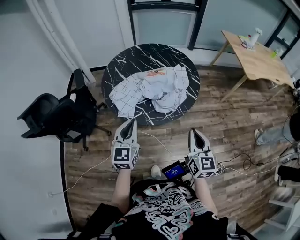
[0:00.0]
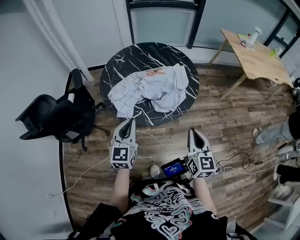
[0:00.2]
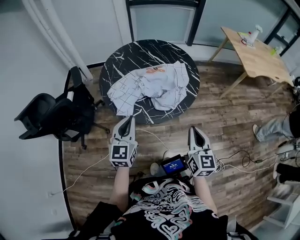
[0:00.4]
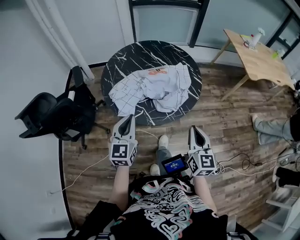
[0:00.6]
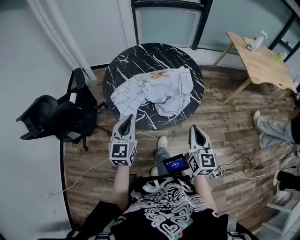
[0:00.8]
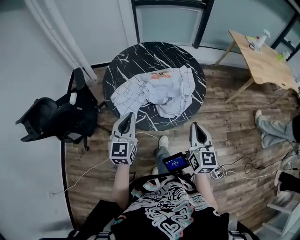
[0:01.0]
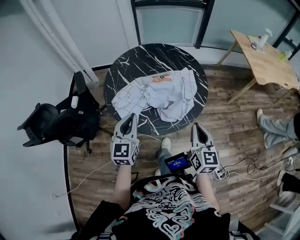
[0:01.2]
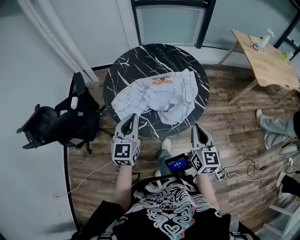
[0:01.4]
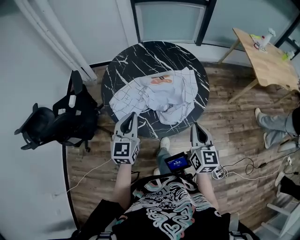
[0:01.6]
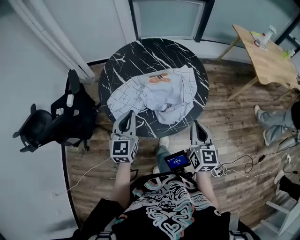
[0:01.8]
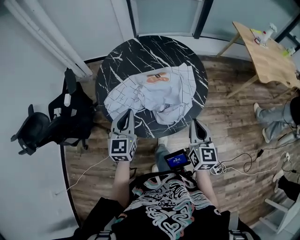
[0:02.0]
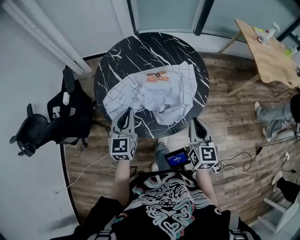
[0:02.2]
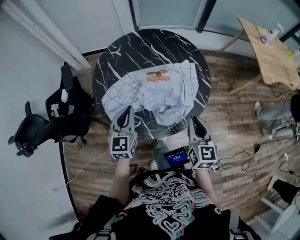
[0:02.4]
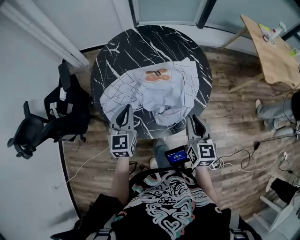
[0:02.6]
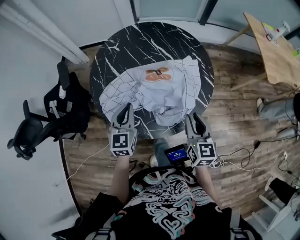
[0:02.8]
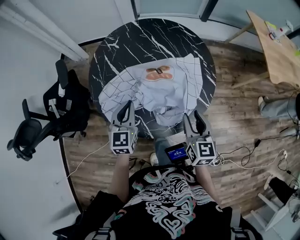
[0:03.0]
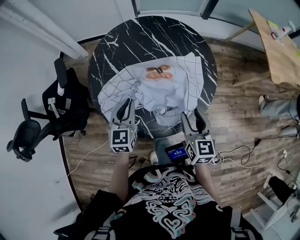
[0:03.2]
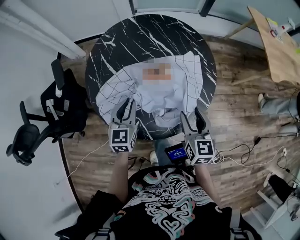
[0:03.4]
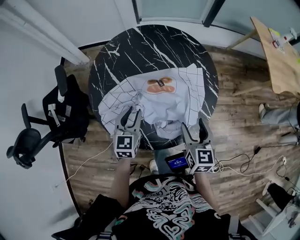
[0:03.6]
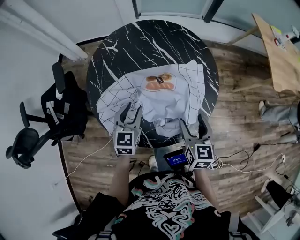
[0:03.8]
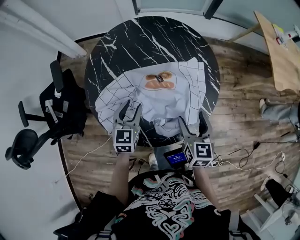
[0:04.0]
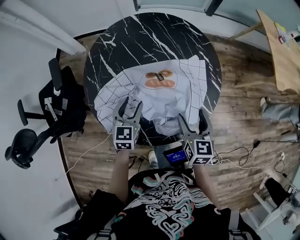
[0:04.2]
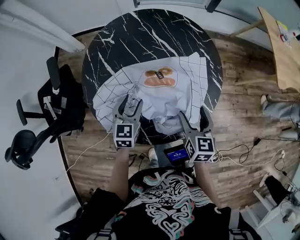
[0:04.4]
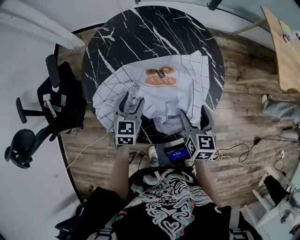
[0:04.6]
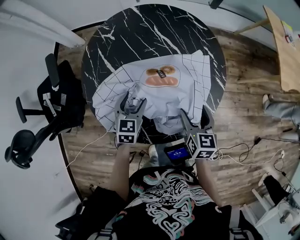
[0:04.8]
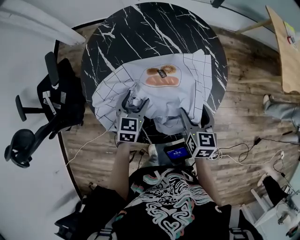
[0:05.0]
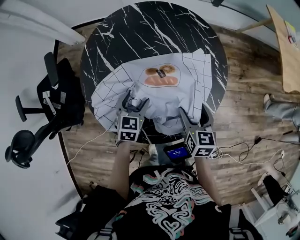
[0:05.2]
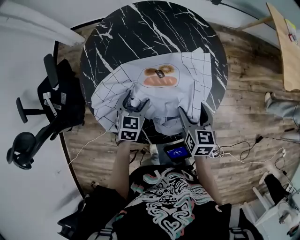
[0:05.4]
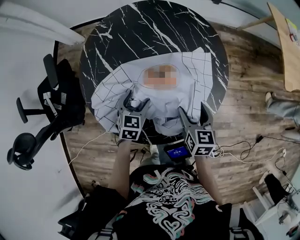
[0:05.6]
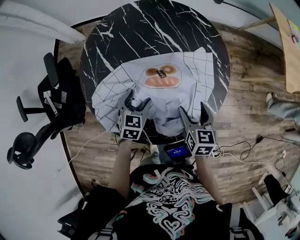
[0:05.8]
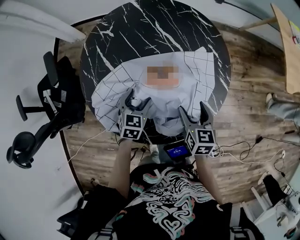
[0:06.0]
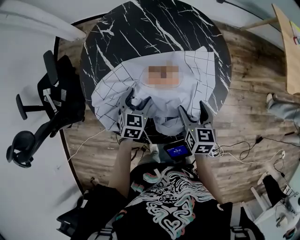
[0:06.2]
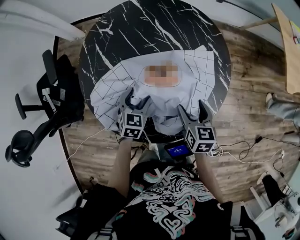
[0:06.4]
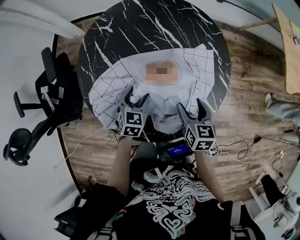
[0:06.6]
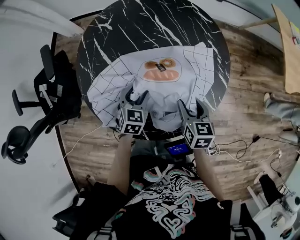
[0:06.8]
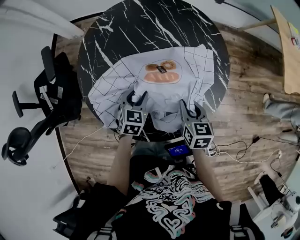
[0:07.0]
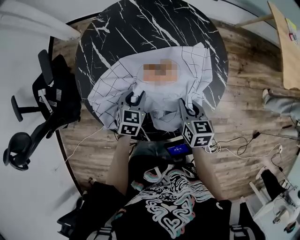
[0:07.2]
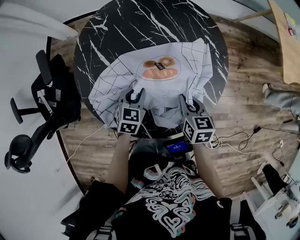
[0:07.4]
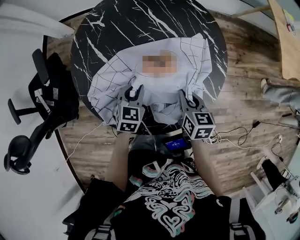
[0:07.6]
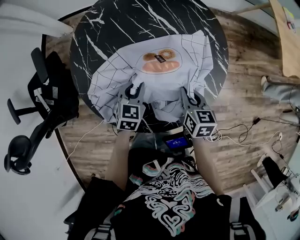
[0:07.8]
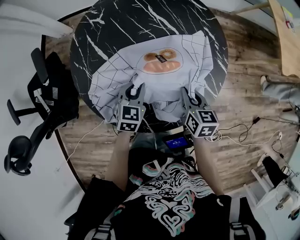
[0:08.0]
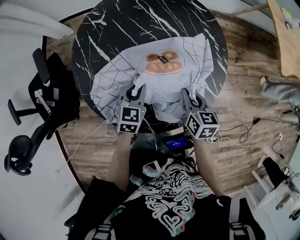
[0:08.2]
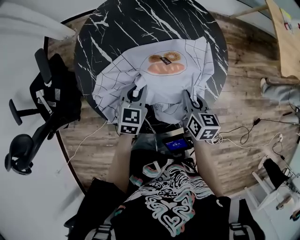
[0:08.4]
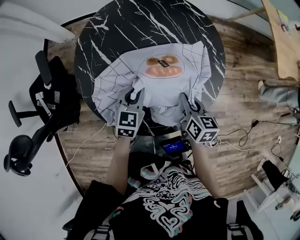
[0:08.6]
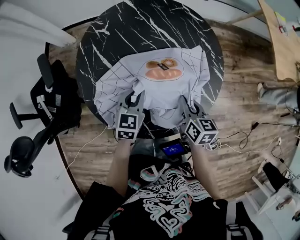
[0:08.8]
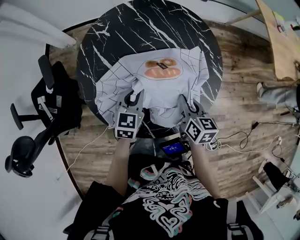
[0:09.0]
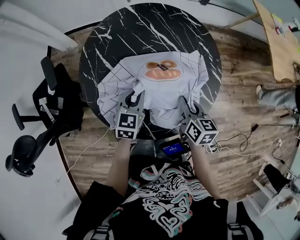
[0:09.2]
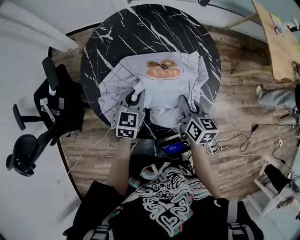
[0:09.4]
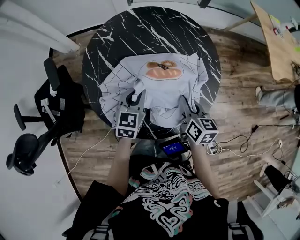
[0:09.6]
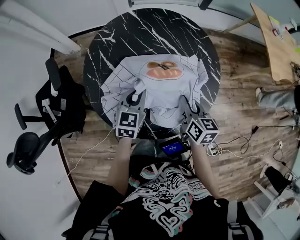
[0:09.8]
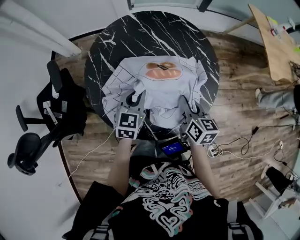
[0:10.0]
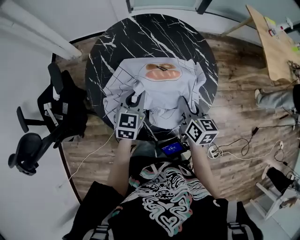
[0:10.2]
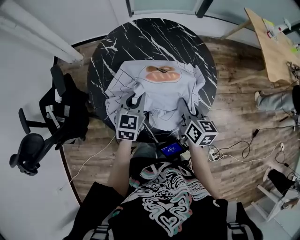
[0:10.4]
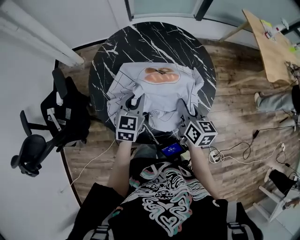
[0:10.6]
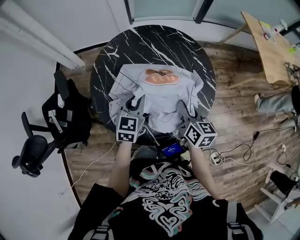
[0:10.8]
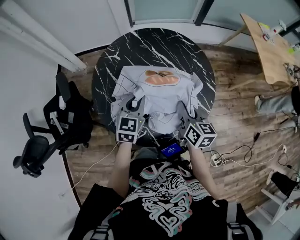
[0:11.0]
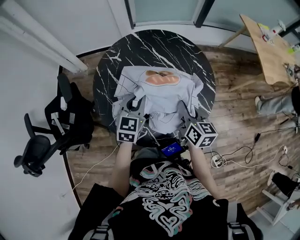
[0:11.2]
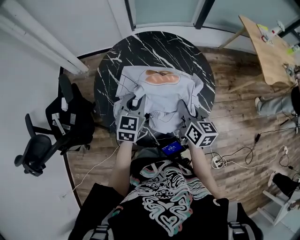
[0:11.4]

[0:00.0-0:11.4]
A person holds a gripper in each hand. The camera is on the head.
0:00.0 to 0:01.4: The two grippers go about 10 cm forward.
0:01.4 to 0:02.8: Both grippers travel together forward and downward, some 15 cm.
0:02.8 to 0:04.2: The right gripper goes about 10 cm forward and downward, and opens up, while the left gripper goes about 10 cm downward and forward, and opens its fingers.
0:04.2 to 0:05.6: Both grippers move downward, some 5 cm.
0:05.6 to 0:07.2: The left gripper closes. The right gripper closes its fingers.
0:07.2 to 0:08.6: The left gripper travels upward by roughly 5 cm.
0:08.6 to 0:10.0: The two grippers go approximately 5 cm upward.
0:10.0 to 0:11.4: Both grippers move upward, roughly 5 cm.

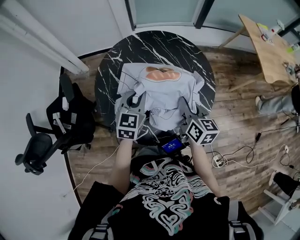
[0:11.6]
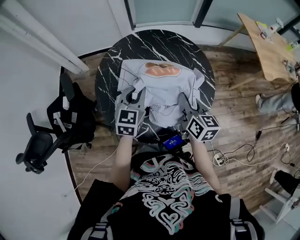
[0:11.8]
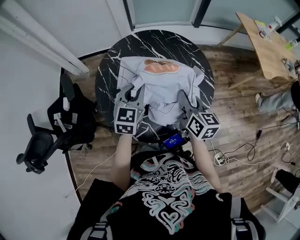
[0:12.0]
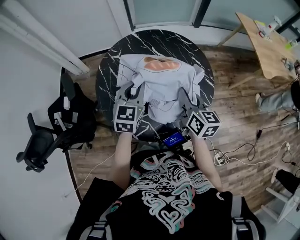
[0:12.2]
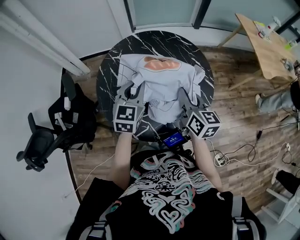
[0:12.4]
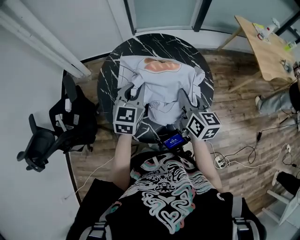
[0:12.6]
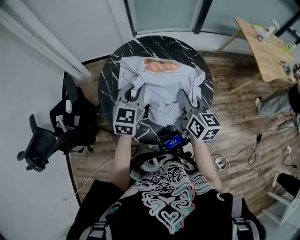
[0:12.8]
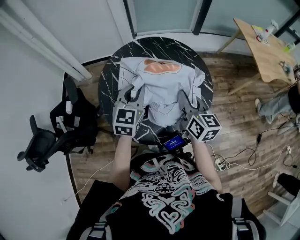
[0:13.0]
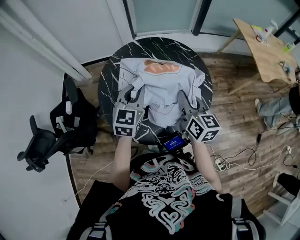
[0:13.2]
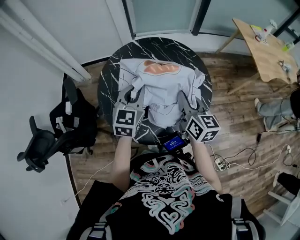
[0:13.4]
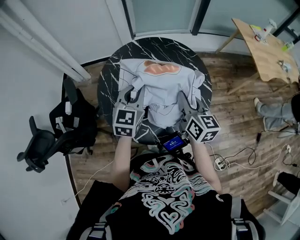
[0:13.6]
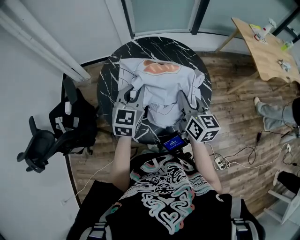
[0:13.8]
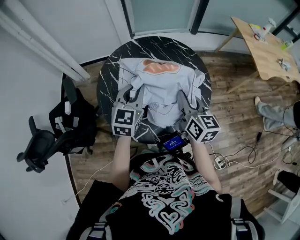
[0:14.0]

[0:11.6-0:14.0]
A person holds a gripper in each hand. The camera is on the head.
0:11.6 to 0:12.8: The grippers both shift upward by approximately 5 cm.
0:12.8 to 0:14.0: The grippers stay close to where they were, moving slightly.

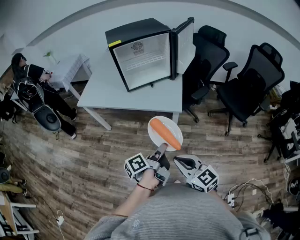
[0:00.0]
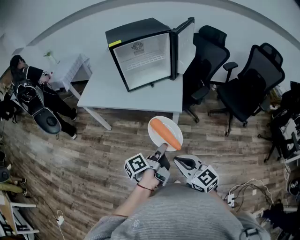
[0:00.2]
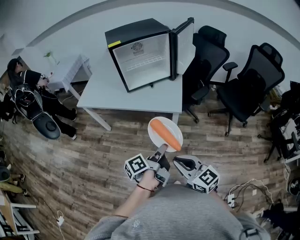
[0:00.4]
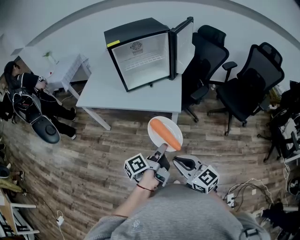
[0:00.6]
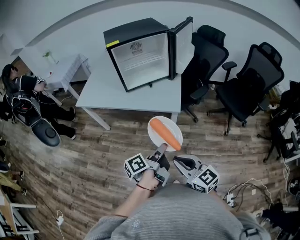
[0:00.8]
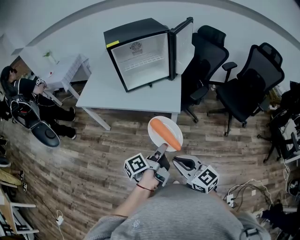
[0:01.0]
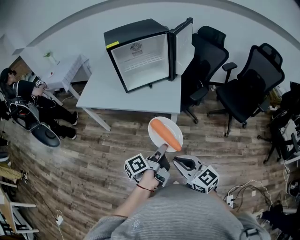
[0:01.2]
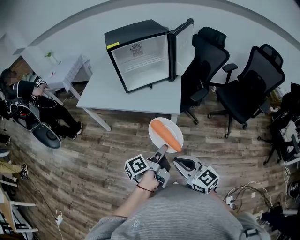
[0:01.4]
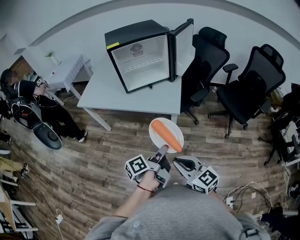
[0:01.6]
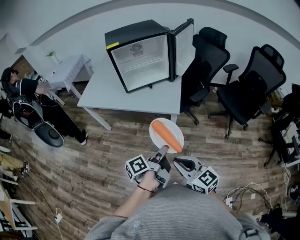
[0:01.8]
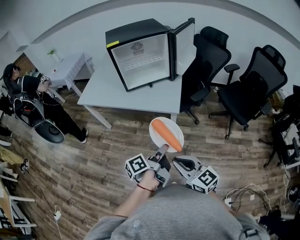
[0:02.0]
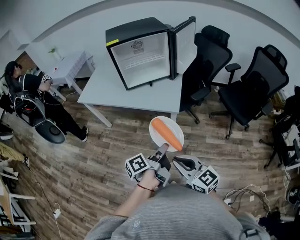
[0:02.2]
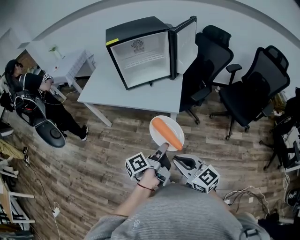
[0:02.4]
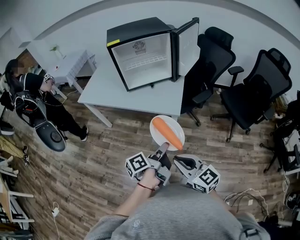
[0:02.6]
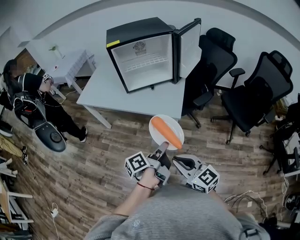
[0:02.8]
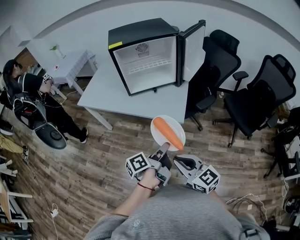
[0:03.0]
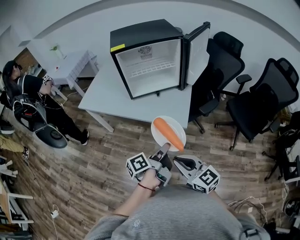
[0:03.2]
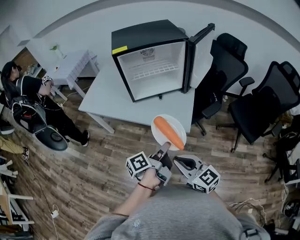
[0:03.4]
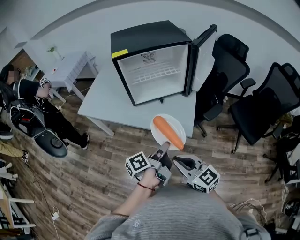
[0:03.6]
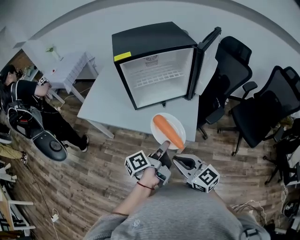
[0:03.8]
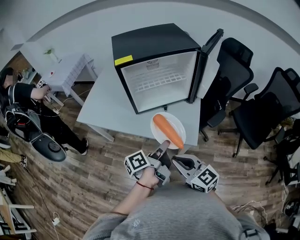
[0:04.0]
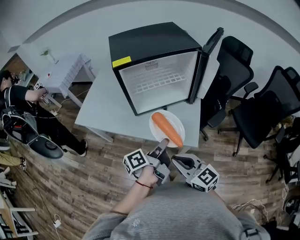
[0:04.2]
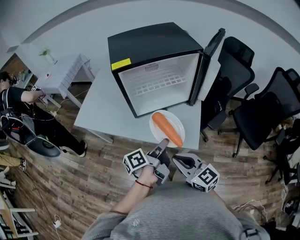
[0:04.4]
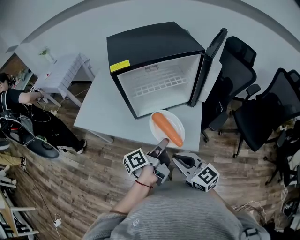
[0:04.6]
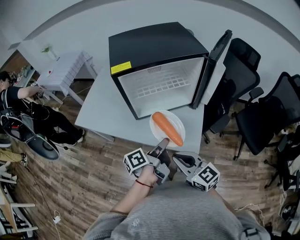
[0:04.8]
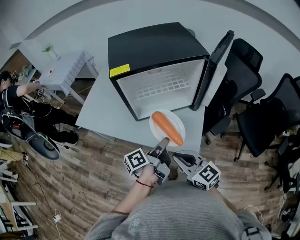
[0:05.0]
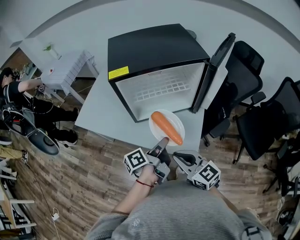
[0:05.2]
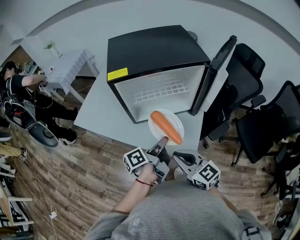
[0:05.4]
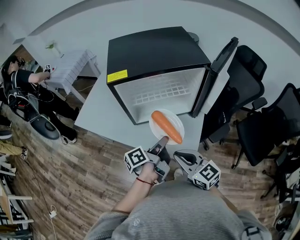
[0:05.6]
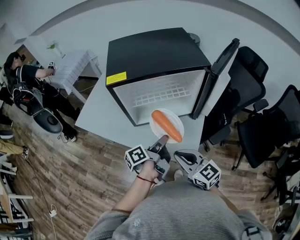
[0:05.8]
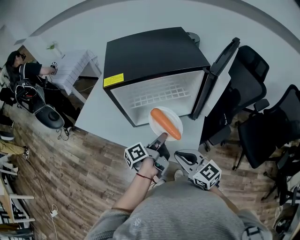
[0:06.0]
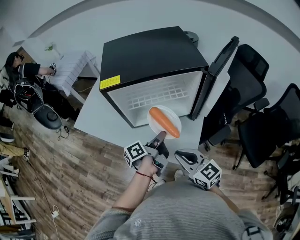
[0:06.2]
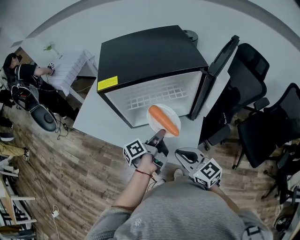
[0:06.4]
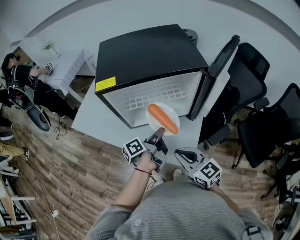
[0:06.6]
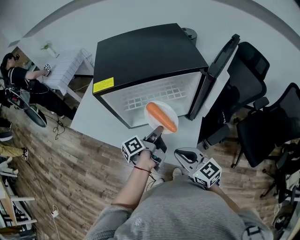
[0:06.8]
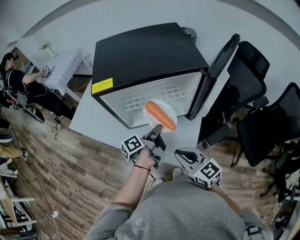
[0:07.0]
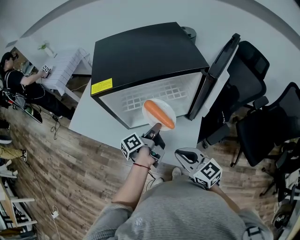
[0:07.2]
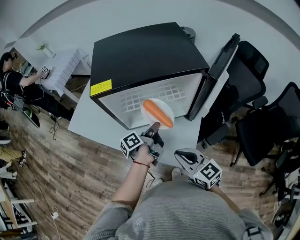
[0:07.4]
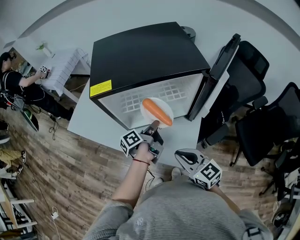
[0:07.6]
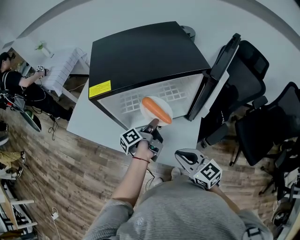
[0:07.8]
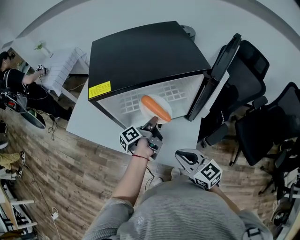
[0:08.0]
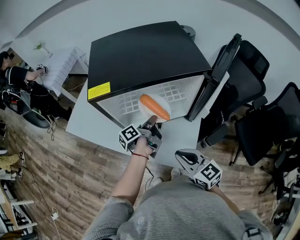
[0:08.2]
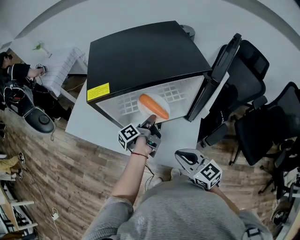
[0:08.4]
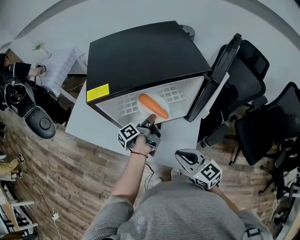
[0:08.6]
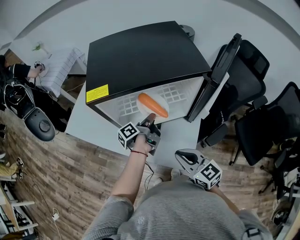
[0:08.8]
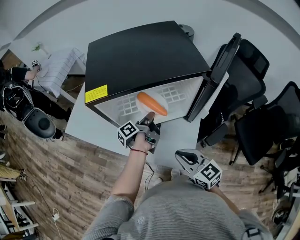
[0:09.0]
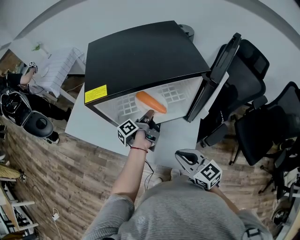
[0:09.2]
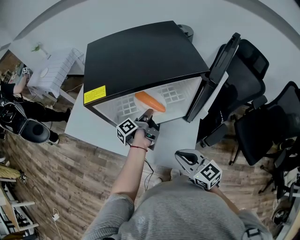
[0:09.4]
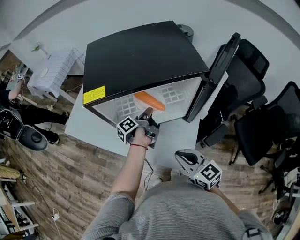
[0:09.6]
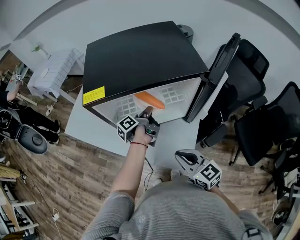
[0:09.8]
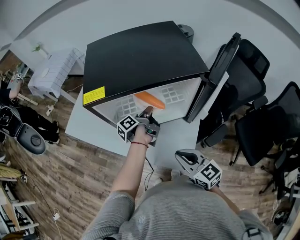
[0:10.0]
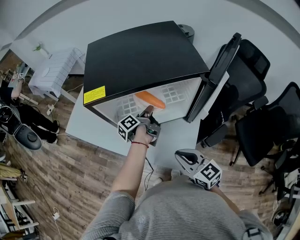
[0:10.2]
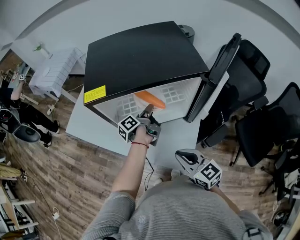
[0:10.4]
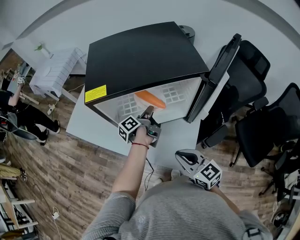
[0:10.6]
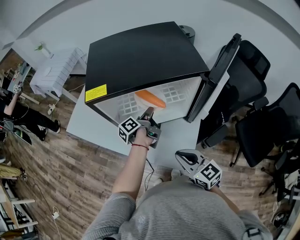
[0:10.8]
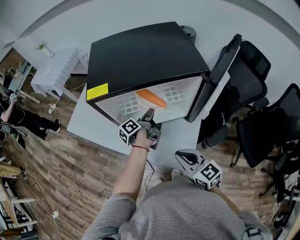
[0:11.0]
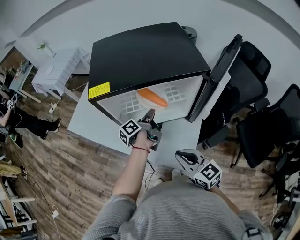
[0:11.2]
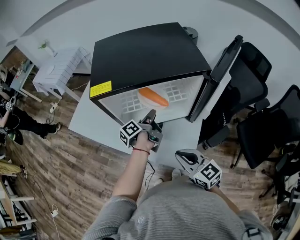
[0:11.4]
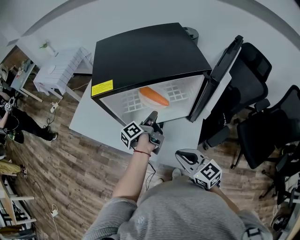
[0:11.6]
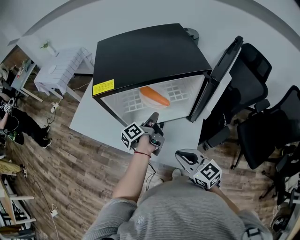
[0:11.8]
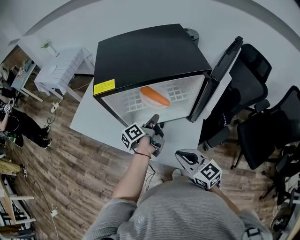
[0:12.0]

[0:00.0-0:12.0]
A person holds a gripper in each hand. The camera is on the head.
0:01.6 to 0:03.0: The right gripper moves roughly 10 cm.
0:03.0 to 0:04.4: The right gripper changes place by approximately 25 cm.
0:04.4 to 0:06.0: The right gripper ends up some 15 cm from where it was.
0:06.0 to 0:07.6: The right gripper moves roughly 5 cm.
